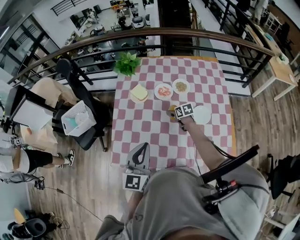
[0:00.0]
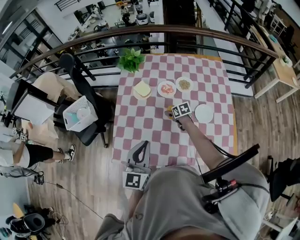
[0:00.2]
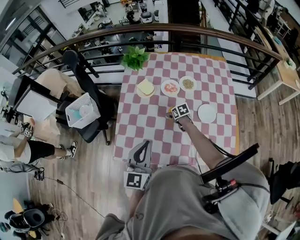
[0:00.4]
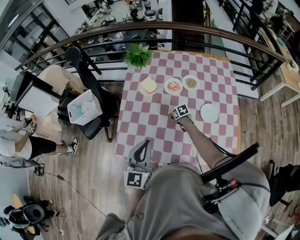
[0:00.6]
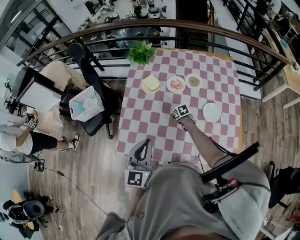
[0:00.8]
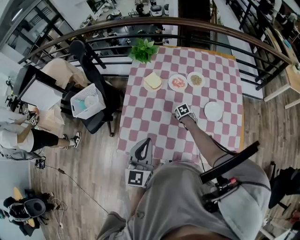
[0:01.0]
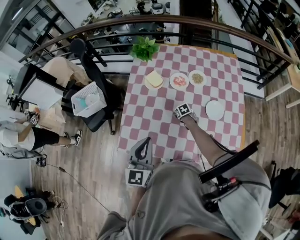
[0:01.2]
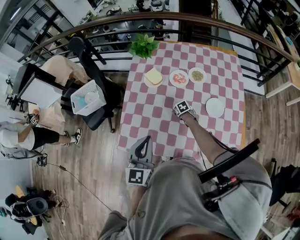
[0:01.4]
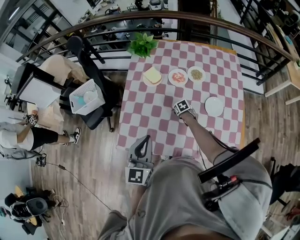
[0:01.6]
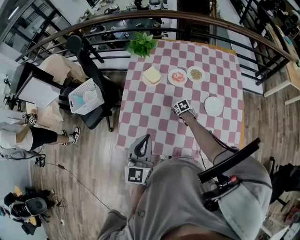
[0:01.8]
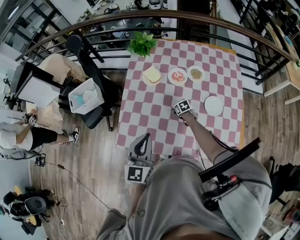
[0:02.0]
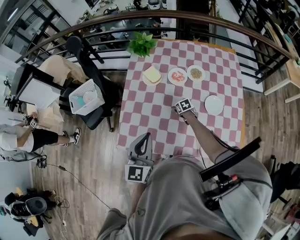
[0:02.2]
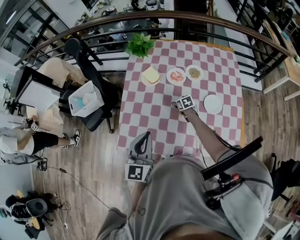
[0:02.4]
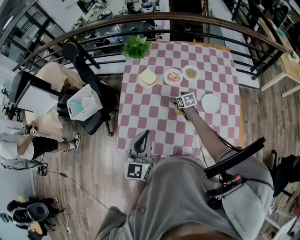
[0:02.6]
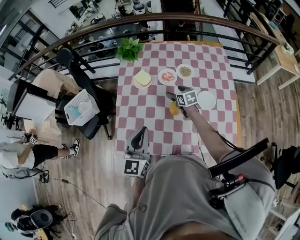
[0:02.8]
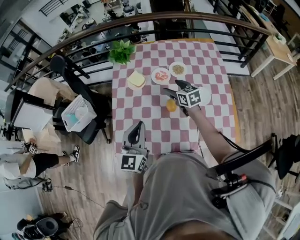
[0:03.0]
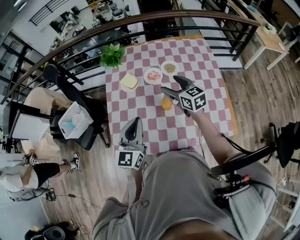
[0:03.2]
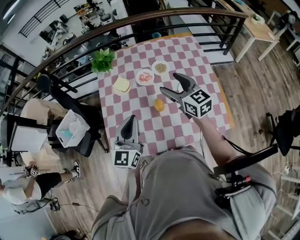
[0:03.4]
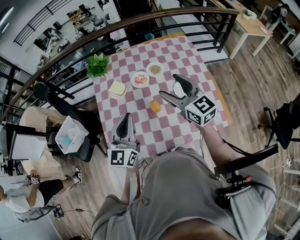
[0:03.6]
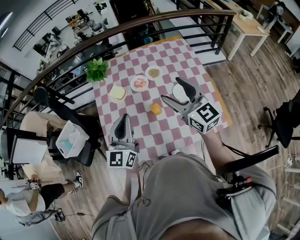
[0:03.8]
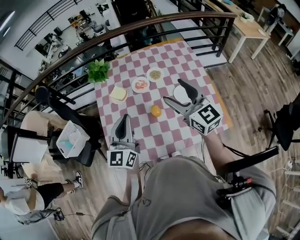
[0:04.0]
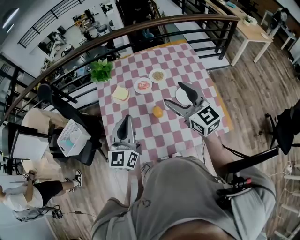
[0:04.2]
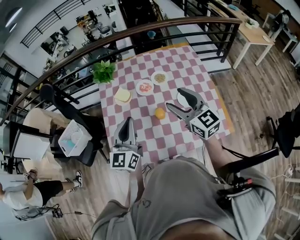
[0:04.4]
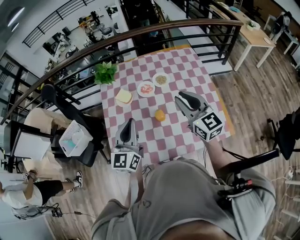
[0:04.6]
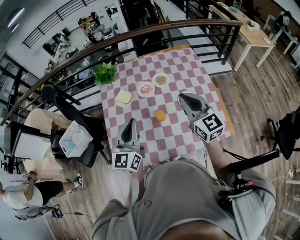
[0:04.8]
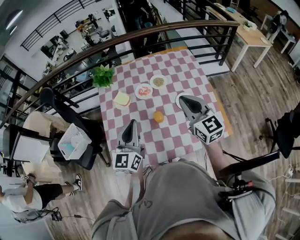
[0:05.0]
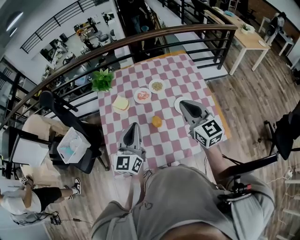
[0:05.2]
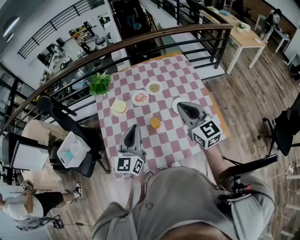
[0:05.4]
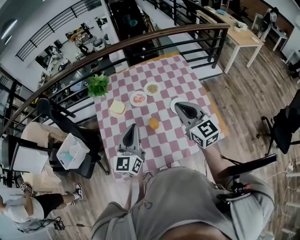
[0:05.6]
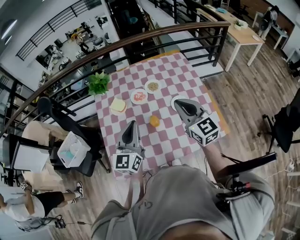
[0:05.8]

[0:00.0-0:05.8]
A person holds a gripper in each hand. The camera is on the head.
0:00.0 to 0:01.4: The right gripper goes roughly 15 cm downward and to the left, and turns by about 30 degrees.
0:01.4 to 0:02.8: The right gripper is displaced upward by approximately 20 cm, and changes its angle by some 30 degrees.
0:02.8 to 0:04.4: The right gripper heads upward and backward, covering about 35 cm, and tilts its fingers approximately 30 degrees upward. The left gripper moves upward, some 5 cm.
0:04.4 to 0:05.8: The right gripper closes its fingers.

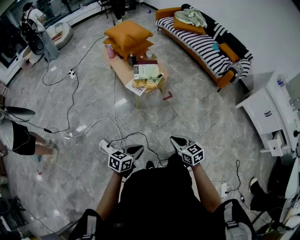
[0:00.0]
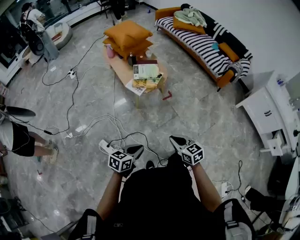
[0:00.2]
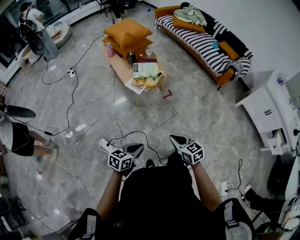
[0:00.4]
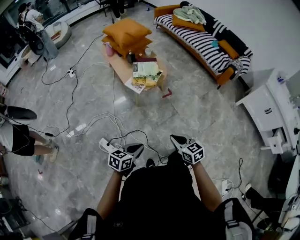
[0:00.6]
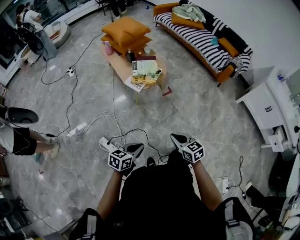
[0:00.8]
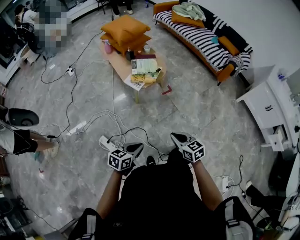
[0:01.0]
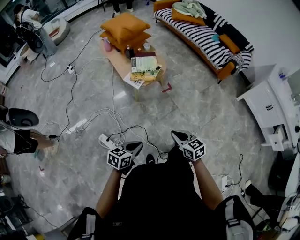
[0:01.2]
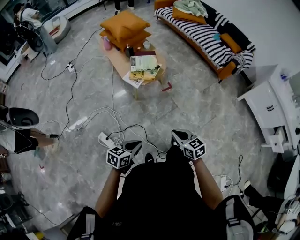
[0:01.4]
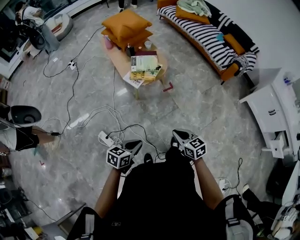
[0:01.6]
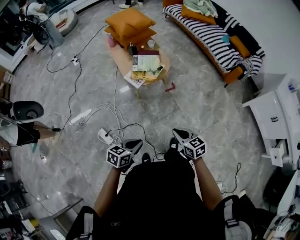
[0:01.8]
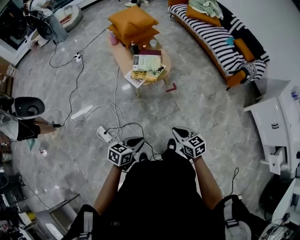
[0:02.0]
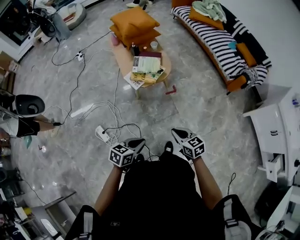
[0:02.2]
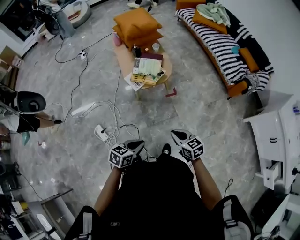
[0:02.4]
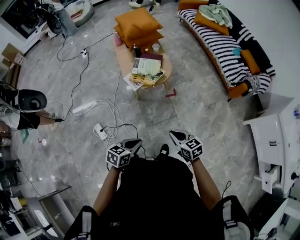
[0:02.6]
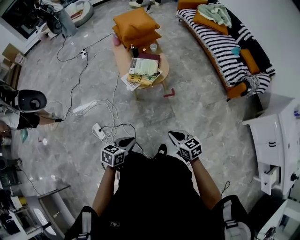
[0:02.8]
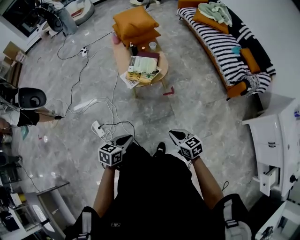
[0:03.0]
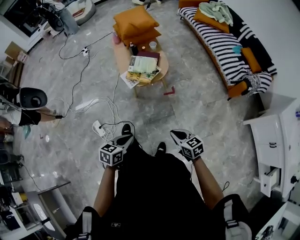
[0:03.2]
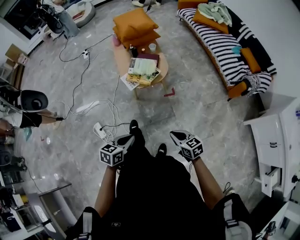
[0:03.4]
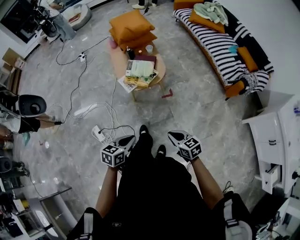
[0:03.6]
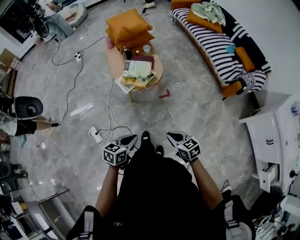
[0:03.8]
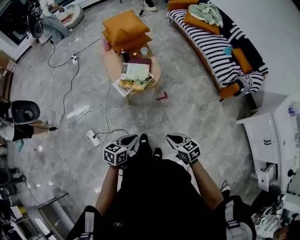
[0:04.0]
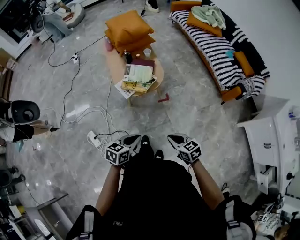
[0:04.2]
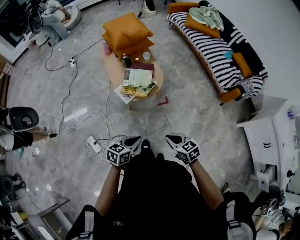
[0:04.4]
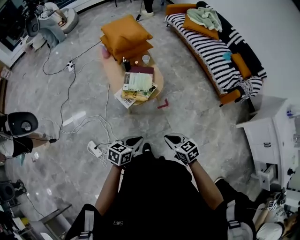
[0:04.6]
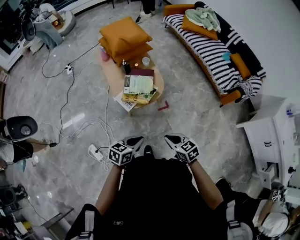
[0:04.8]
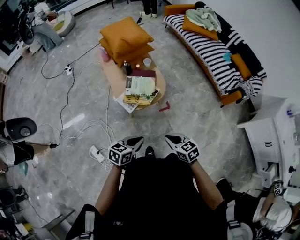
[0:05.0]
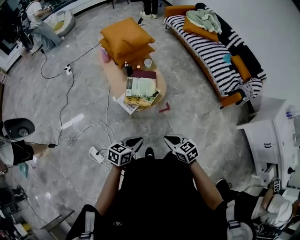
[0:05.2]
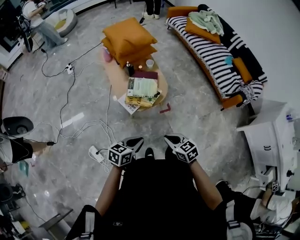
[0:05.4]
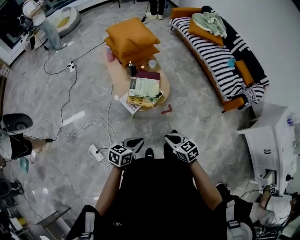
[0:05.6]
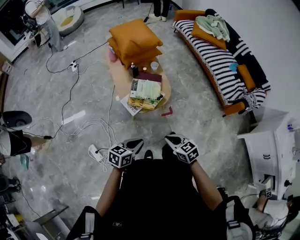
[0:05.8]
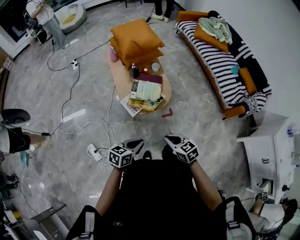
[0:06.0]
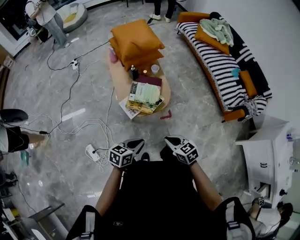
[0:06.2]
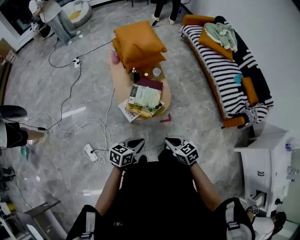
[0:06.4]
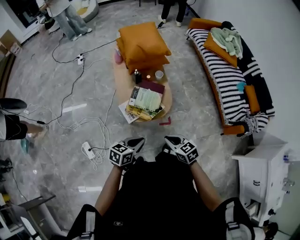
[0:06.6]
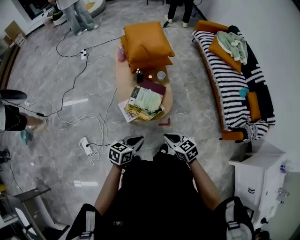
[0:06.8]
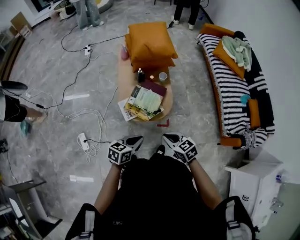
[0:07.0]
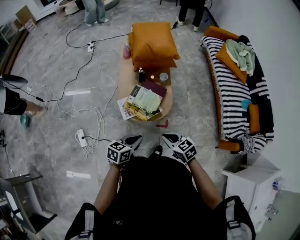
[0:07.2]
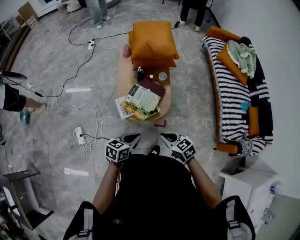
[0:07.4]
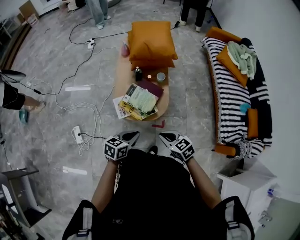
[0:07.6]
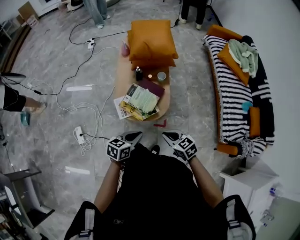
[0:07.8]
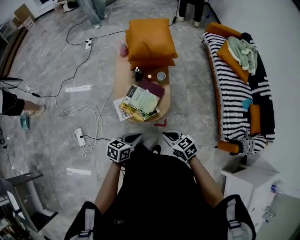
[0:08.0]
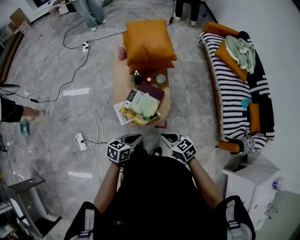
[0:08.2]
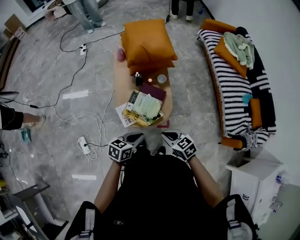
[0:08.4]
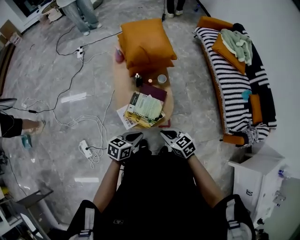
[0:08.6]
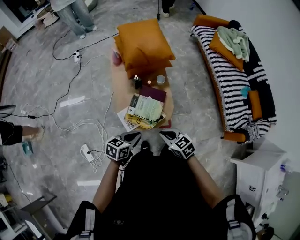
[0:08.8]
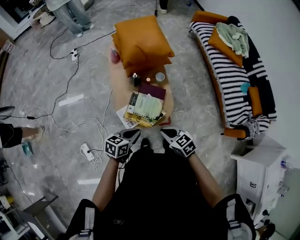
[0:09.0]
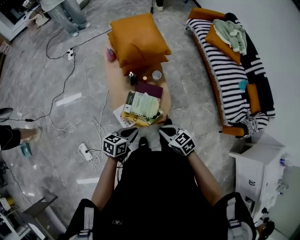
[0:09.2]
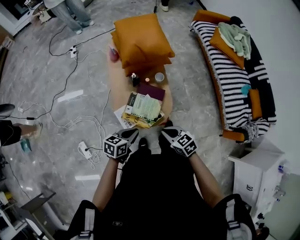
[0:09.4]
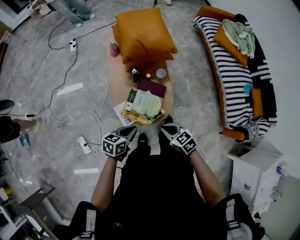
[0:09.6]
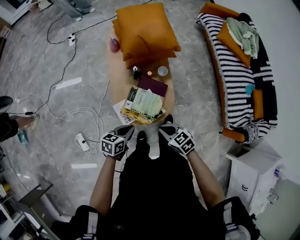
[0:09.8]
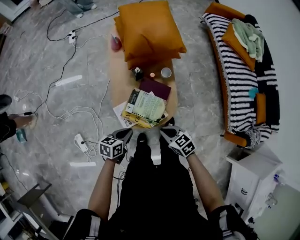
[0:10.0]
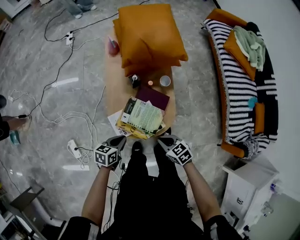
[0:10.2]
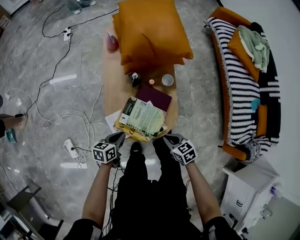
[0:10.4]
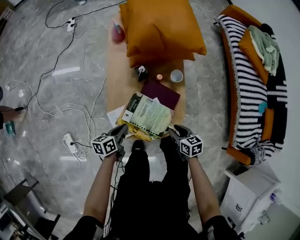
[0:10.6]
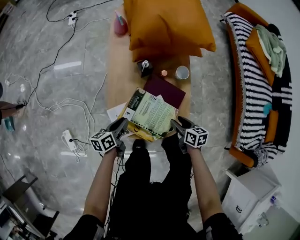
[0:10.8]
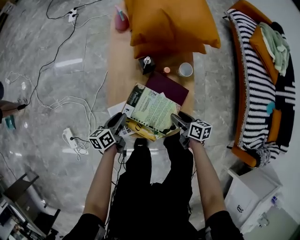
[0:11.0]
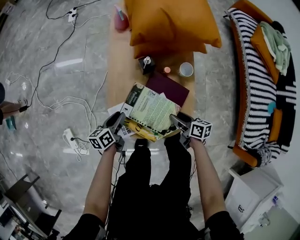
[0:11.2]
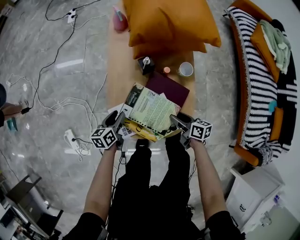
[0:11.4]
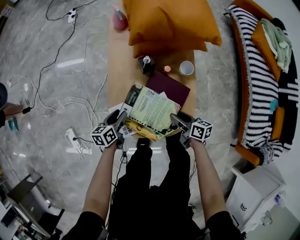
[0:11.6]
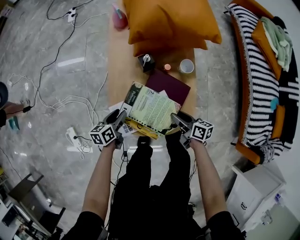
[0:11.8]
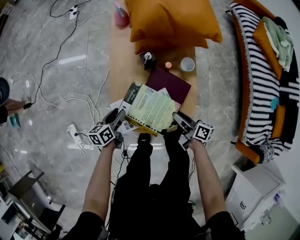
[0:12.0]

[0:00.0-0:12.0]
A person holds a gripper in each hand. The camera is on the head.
0:00.0 to 0:01.6: The right gripper travels to the right by approximately 5 cm.
0:01.6 to 0:03.0: Both grippers travel together to the right and forward, some 15 cm. The left gripper rotates some 20 degrees.
0:03.0 to 0:04.4: Both grippers move forward, about 10 cm.
0:04.4 to 0:06.0: Both grippers travel together forward and to the left, some 10 cm.
0:06.0 to 0:07.6: Both grippers move forward and to the right, approximately 20 cm. The left gripper changes its angle by about 20 degrees. The right gripper rotates some 30 degrees.
0:07.6 to 0:09.0: Both grippers move forward and to the left, about 10 cm.
0:09.0 to 0:10.4: The grippers both shift downward and forward by some 25 cm. The left gripper rotates some 20 degrees.
0:10.4 to 0:12.0: The left gripper is displaced downward, forward and to the left by about 10 cm, and opens, while the right gripper is displaced forward and downward by roughly 10 cm, twists some 50 degrees clockwise, seen from behind, and opens up.

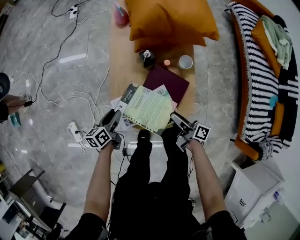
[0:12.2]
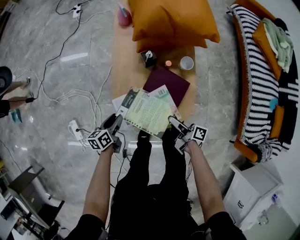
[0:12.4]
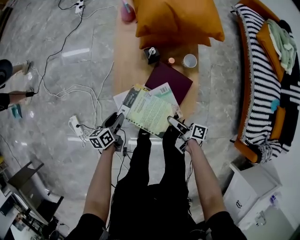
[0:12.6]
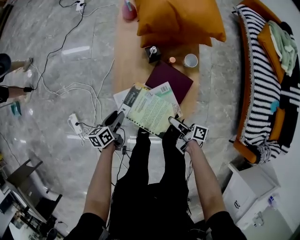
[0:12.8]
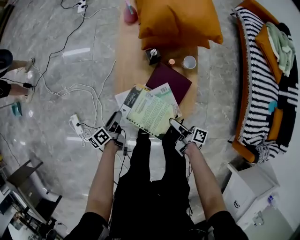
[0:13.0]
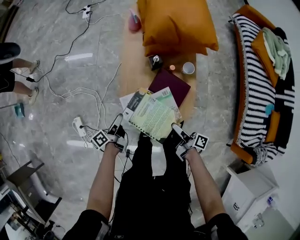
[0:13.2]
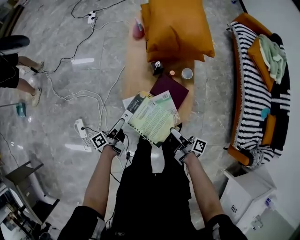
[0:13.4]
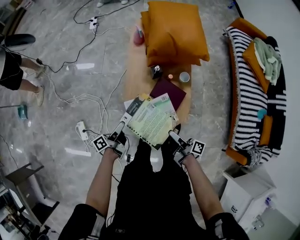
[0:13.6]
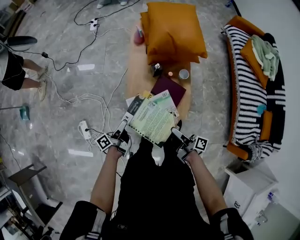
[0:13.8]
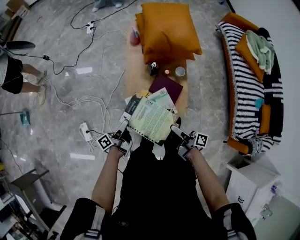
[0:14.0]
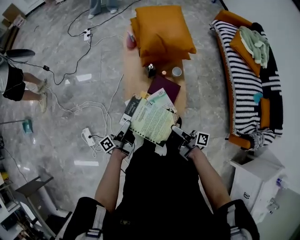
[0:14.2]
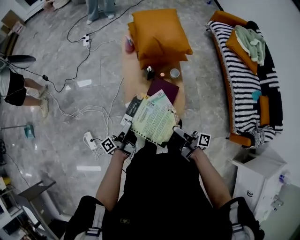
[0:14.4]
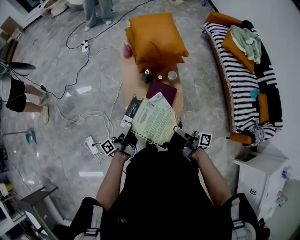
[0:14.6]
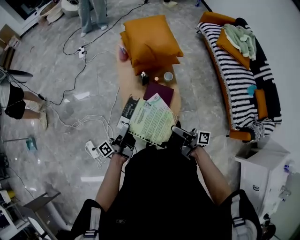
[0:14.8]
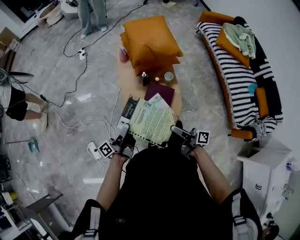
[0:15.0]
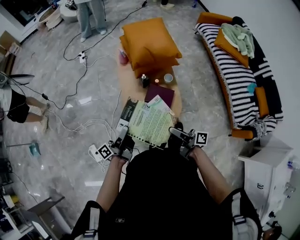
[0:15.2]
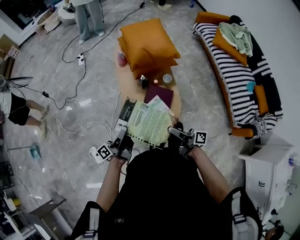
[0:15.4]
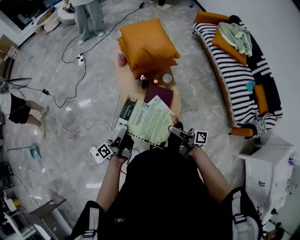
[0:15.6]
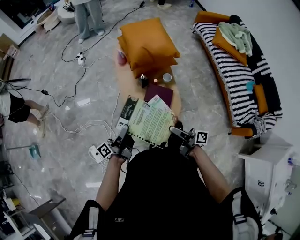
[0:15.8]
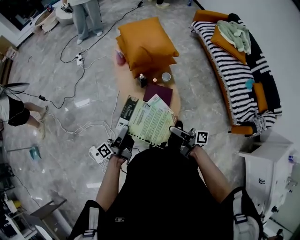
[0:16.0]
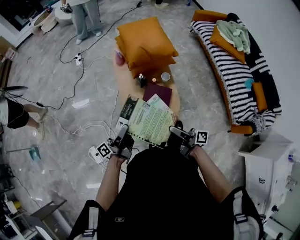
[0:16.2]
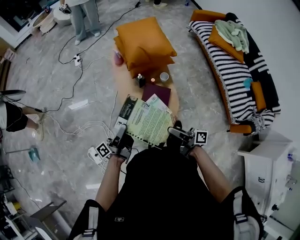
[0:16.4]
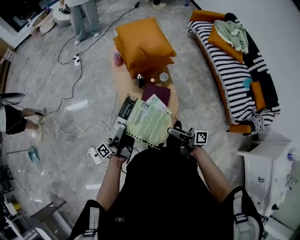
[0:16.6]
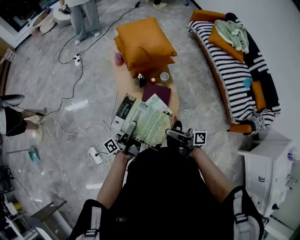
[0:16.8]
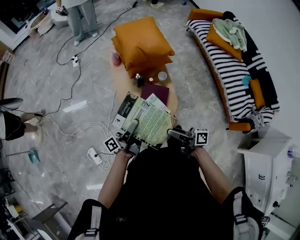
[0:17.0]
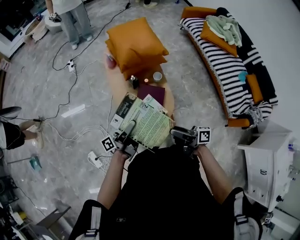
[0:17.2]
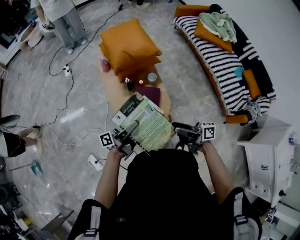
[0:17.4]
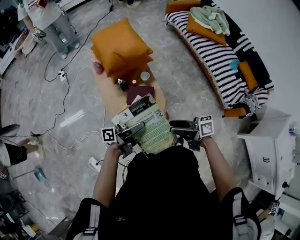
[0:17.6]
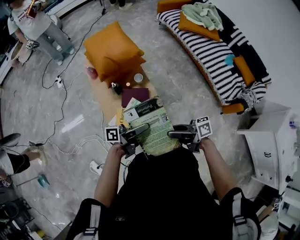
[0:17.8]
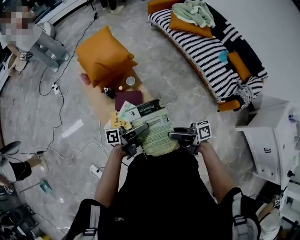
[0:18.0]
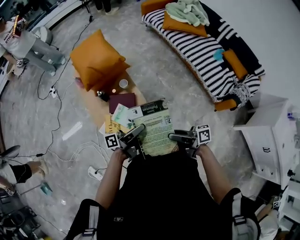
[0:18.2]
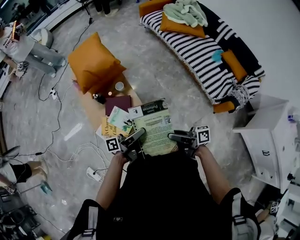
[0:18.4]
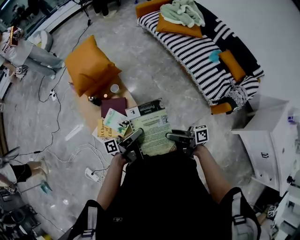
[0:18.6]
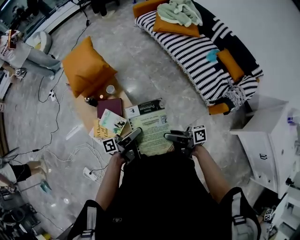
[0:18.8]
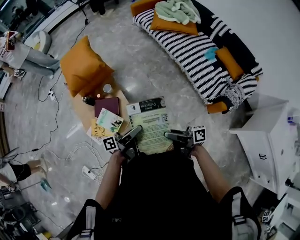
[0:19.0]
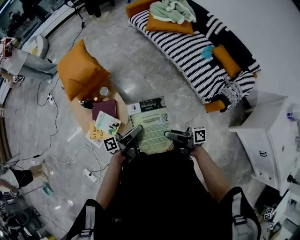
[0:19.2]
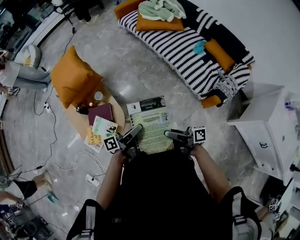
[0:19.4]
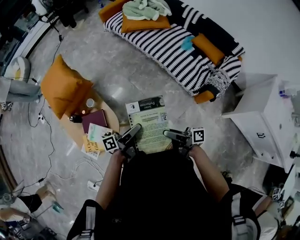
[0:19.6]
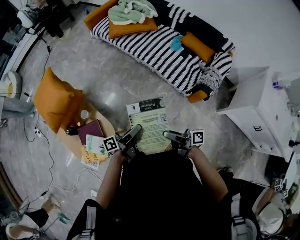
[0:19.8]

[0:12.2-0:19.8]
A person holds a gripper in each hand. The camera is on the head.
0:12.2 to 0:13.8: The two grippers go some 20 cm upward and backward. The left gripper changes its angle by roughly 40 degrees, and opens up.
0:13.8 to 0:15.2: The two grippers go roughly 15 cm upward. The left gripper swivels about 20 degrees, and closes.
0:15.2 to 0:16.8: The left gripper shifts about 5 cm to the right.
0:16.8 to 0:18.2: The left gripper ends up approximately 25 cm from where it was, and rotates approximately 40 degrees, while the right gripper moves approximately 25 cm.
0:18.2 to 0:19.8: Both grippers move to the right, about 25 cm. The right gripper swivels some 30 degrees.
